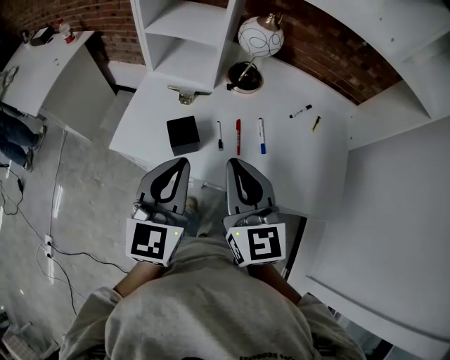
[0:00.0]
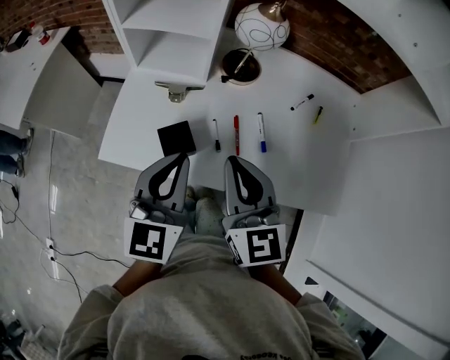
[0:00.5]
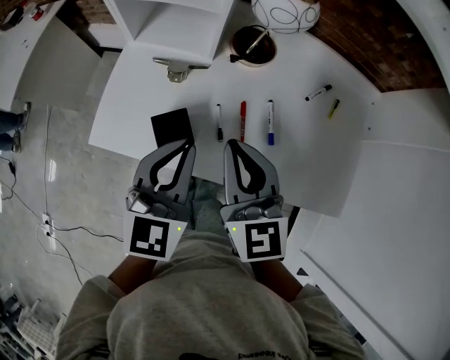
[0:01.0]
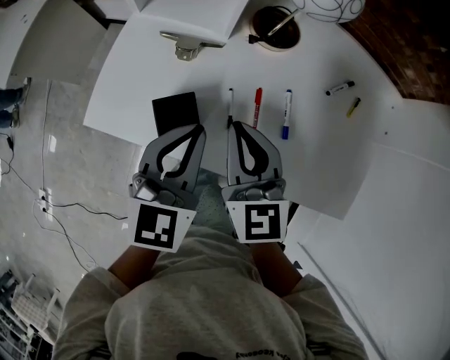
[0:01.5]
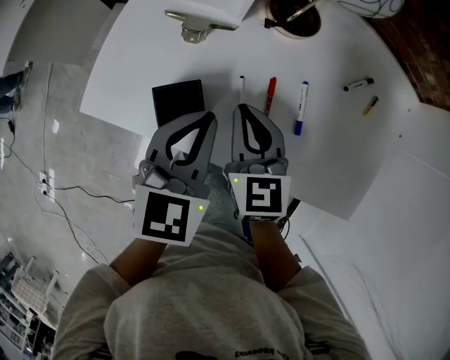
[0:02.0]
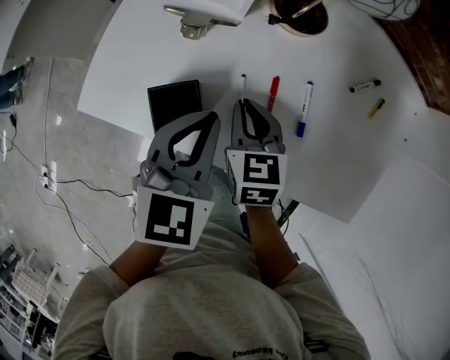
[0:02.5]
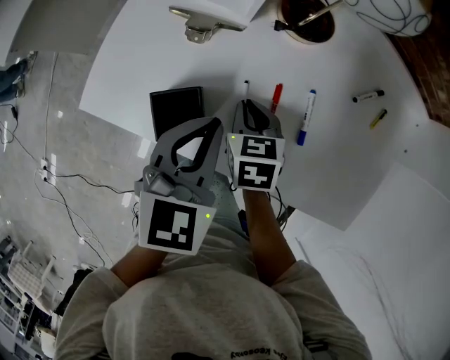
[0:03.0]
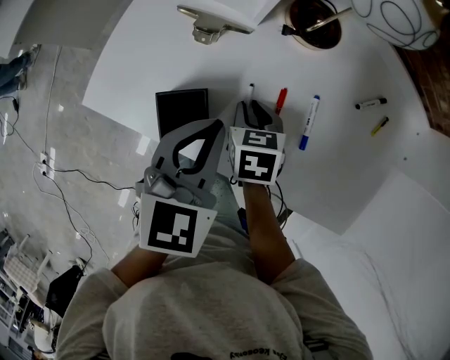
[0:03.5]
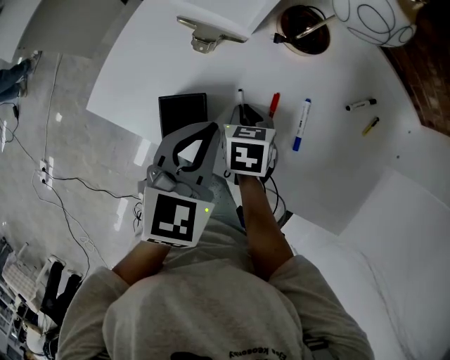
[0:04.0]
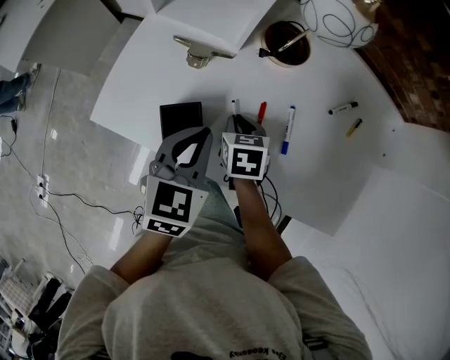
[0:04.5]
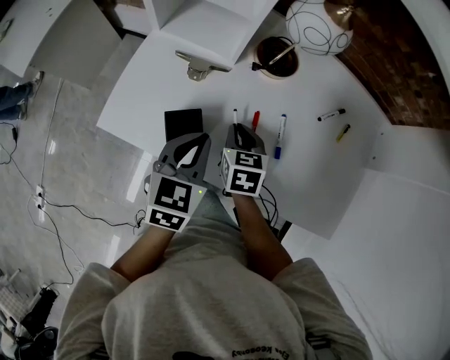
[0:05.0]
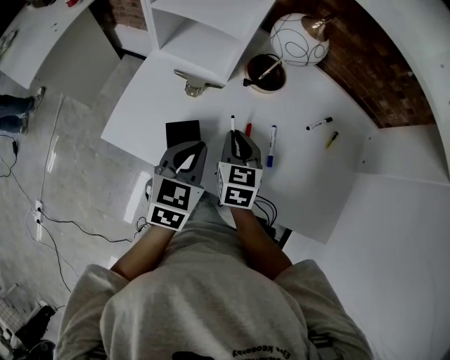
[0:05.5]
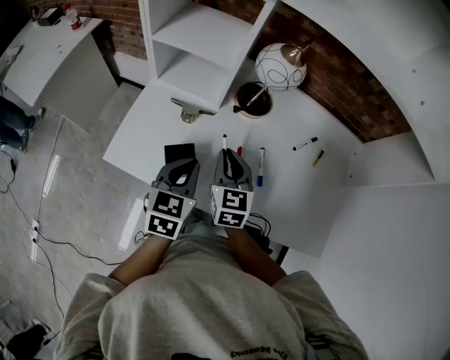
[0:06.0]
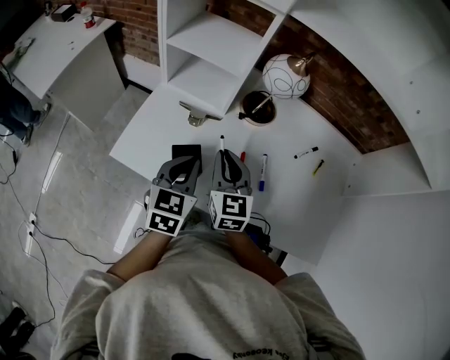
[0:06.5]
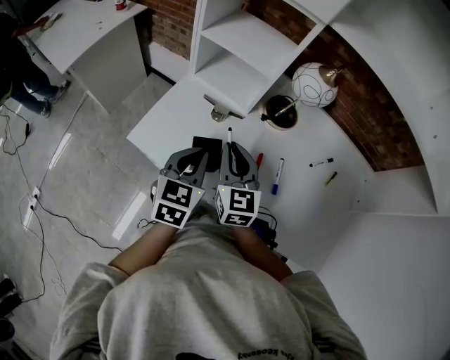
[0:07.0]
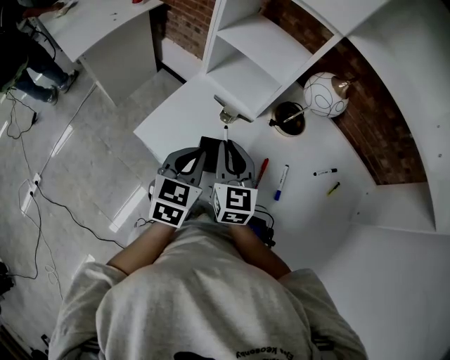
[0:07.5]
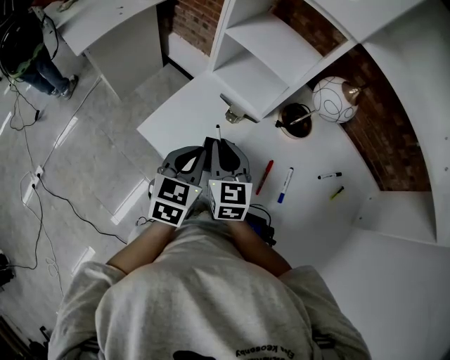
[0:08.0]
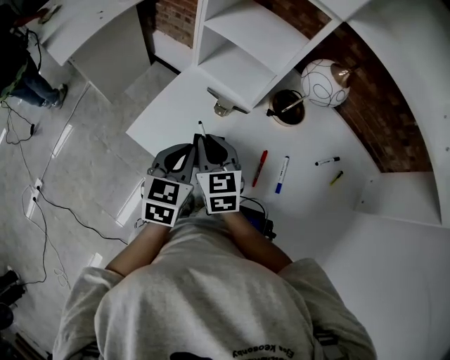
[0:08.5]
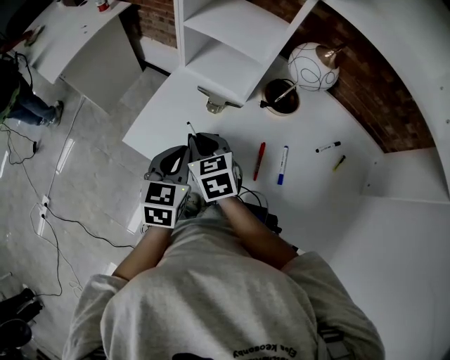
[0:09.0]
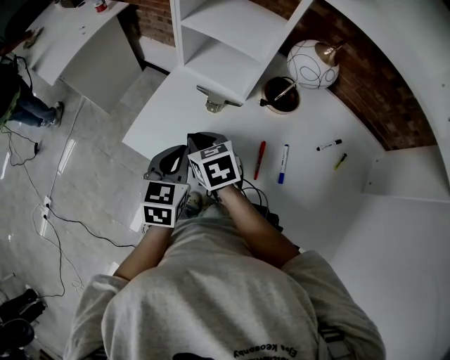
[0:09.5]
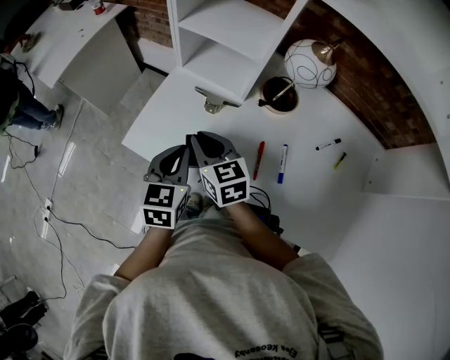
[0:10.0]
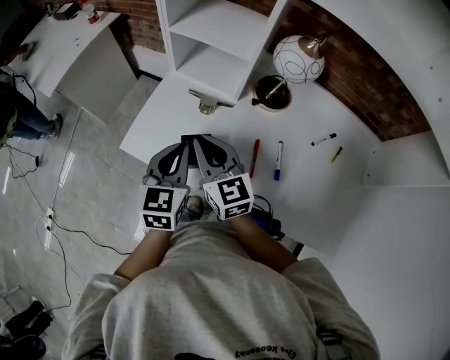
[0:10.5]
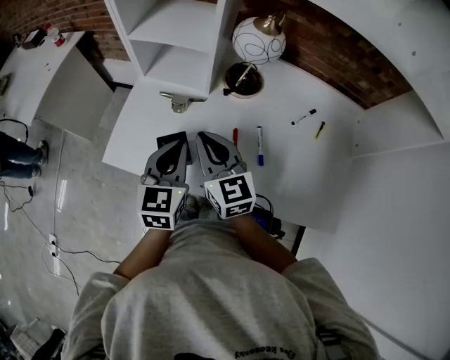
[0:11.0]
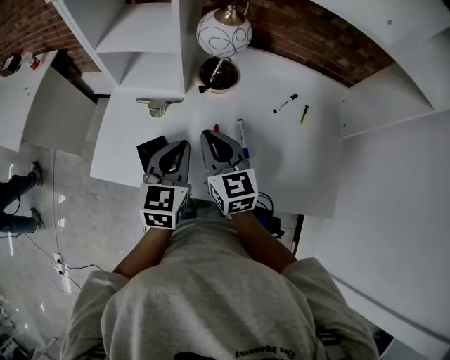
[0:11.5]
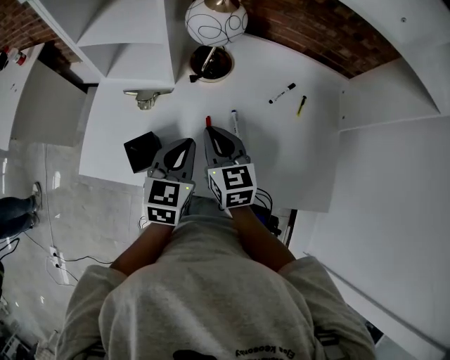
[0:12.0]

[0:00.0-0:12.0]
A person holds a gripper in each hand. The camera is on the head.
0:00.0 to 0:02.0: Both grippers travel together downward and forward, about 25 cm. The right gripper turns by about 20 degrees, while the left gripper rotates approximately 20 degrees.
0:02.0 to 0:04.0: The right gripper travels downward by about 10 cm, and tips its fingers downward by some 30 degrees.
0:04.0 to 0:06.0: The right gripper heads upward, covering some 15 cm, and tips its fingers upward by about 40 degrees.
0:06.0 to 0:08.0: The right gripper travels to the left by some 15 cm, and rotates roughly 20 degrees; the left gripper travels to the left by approximately 10 cm.
0:10.0 to 0:12.0: The right gripper ends up approximately 20 cm from where it was, and rotates roughly 30 degrees; the left gripper ends up approximately 20 cm from where it was, and turns by some 20 degrees.

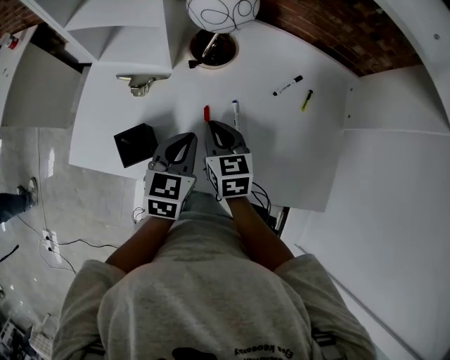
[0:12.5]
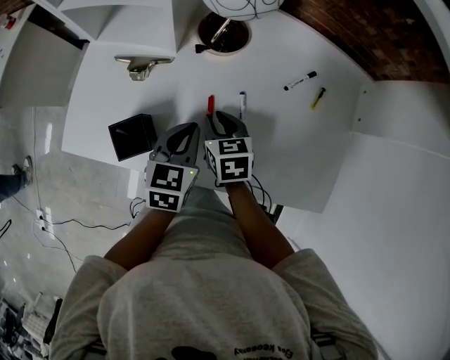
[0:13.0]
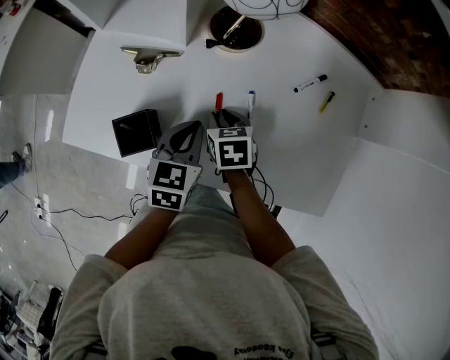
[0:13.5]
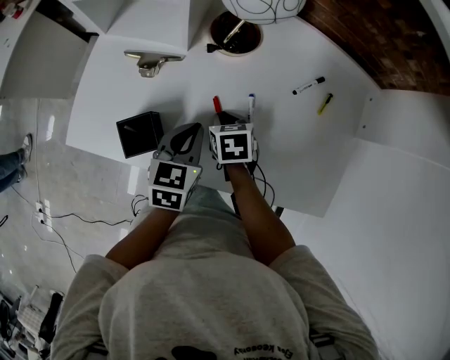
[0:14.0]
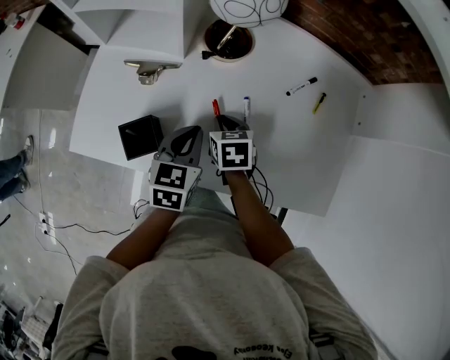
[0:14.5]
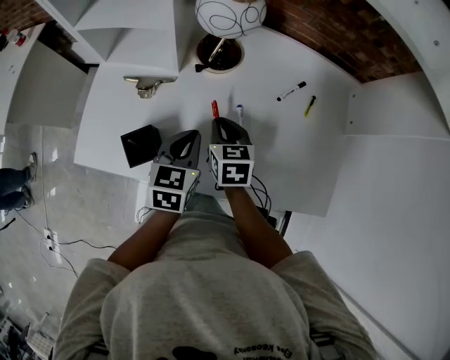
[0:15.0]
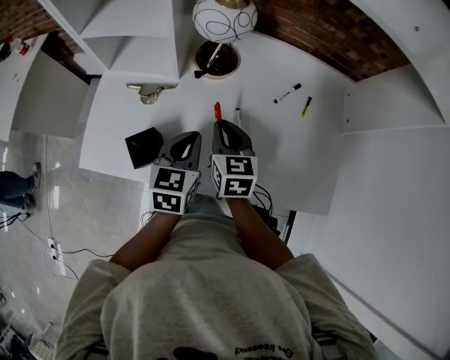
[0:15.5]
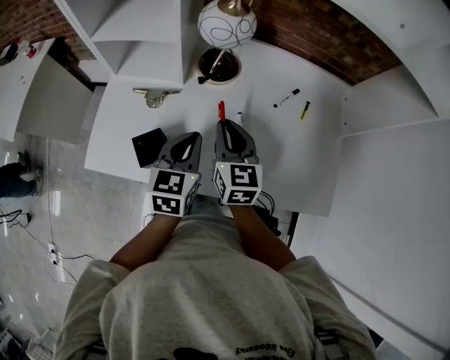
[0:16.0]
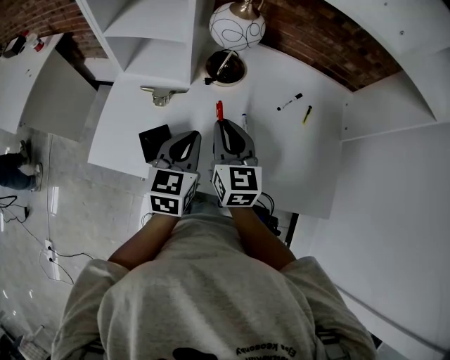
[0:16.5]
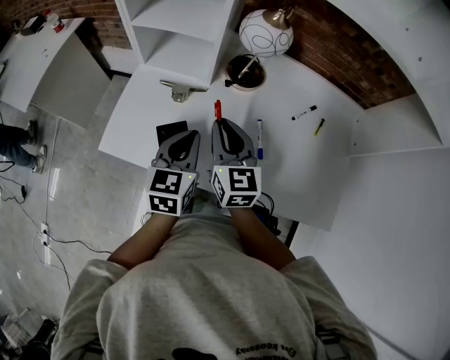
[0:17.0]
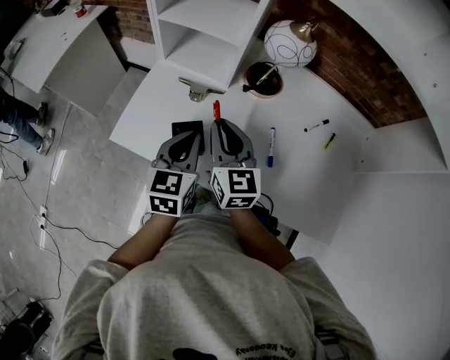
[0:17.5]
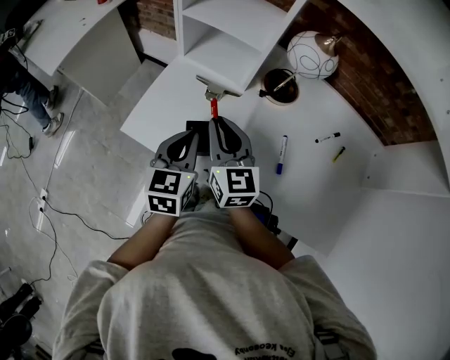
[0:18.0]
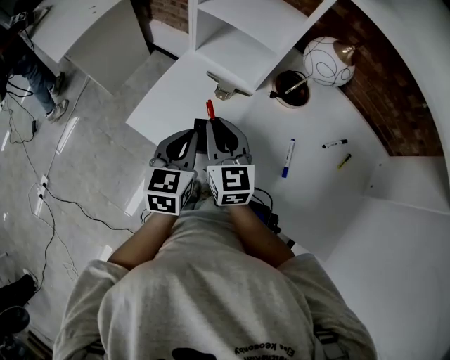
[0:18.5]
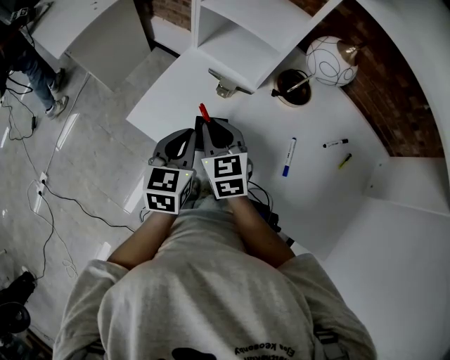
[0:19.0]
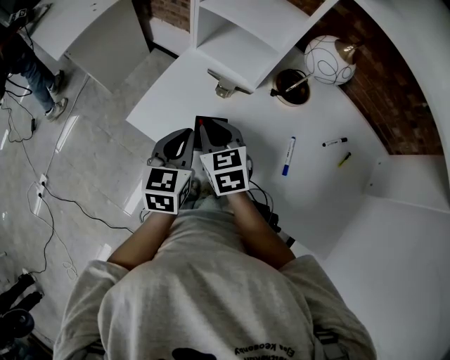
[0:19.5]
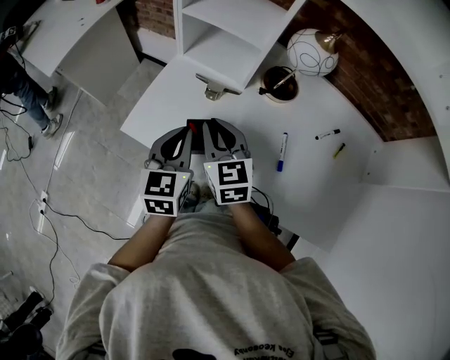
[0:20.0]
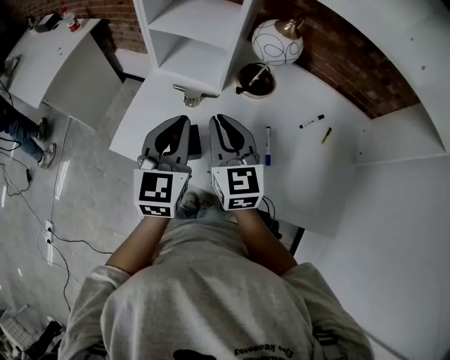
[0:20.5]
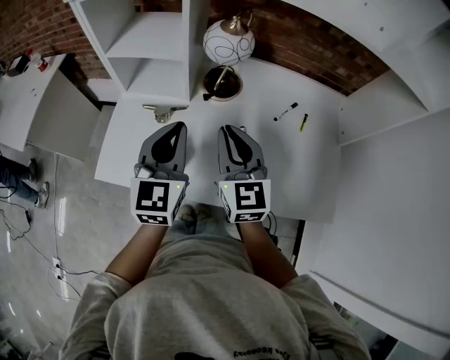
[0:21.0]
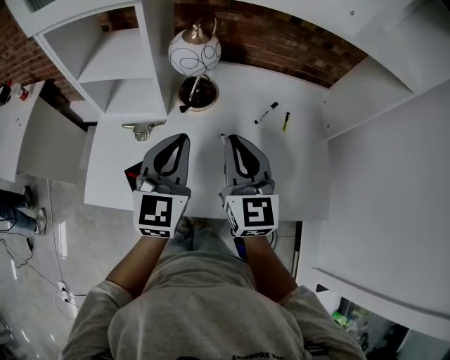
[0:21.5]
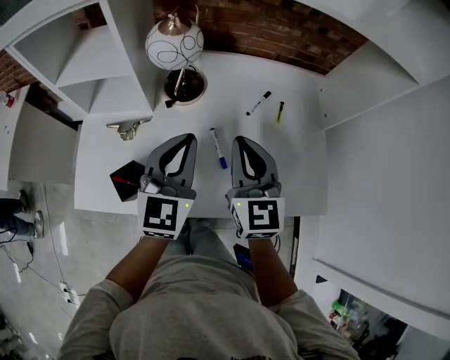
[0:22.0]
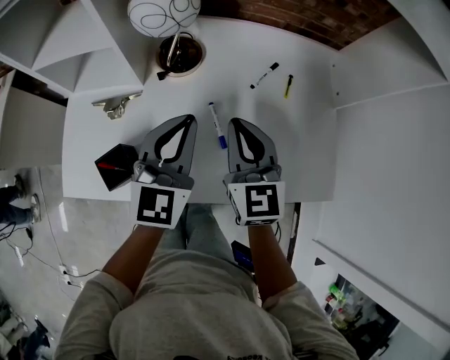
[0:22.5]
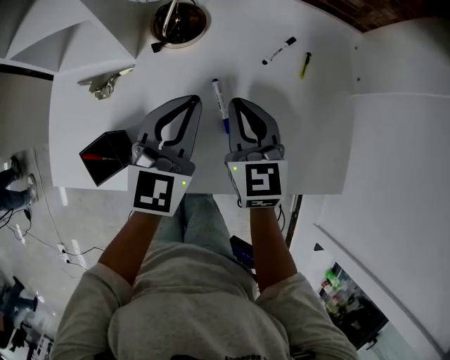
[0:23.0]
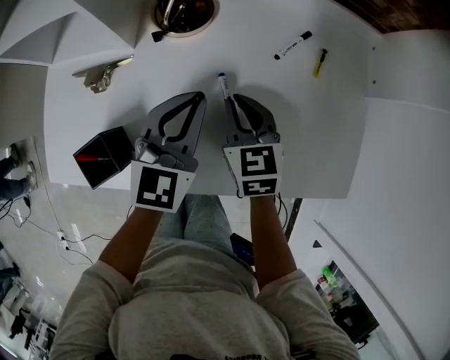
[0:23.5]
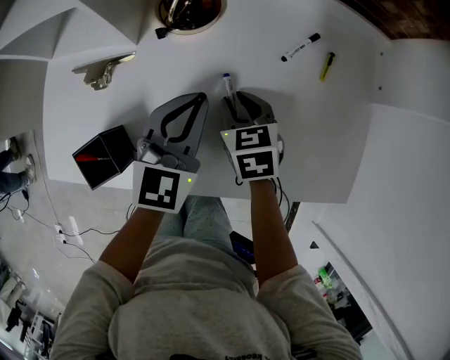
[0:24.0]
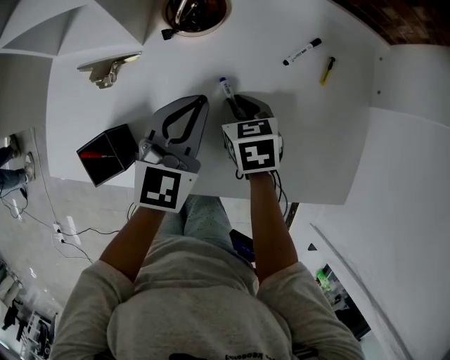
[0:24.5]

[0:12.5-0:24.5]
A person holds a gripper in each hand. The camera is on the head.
0:12.5 to 0:14.5: The right gripper shifts approximately 5 cm downward, and turns by some 20 degrees.
0:14.5 to 0:16.5: The left gripper goes about 10 cm upward. The right gripper moves upward, some 20 cm, and tips its fingers upward by about 40 degrees.
0:16.5 to 0:18.5: Both grippers travel together to the left, roughly 15 cm. The left gripper turns by approximately 20 degrees. The right gripper swivels roughly 30 degrees.
0:18.5 to 0:20.5: The right gripper is displaced to the right and upward by roughly 10 cm; the left gripper is displaced upward and to the right by about 10 cm, and turns by approximately 20 degrees.
0:20.5 to 0:22.5: The two grippers go approximately 20 cm to the right. The right gripper turns by roughly 20 degrees. Meanwhile the left gripper changes its angle by about 30 degrees.
0:22.5 to 0:24.5: The right gripper heads downward, covering about 20 cm, and tips its fingers downward by some 40 degrees; the left gripper heads downward, covering roughly 10 cm.

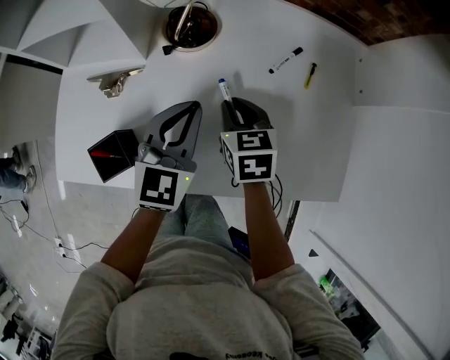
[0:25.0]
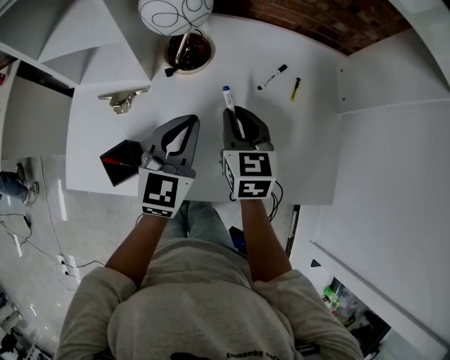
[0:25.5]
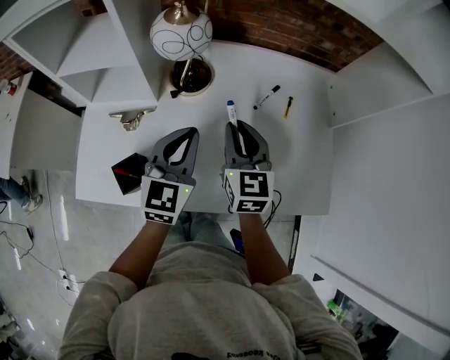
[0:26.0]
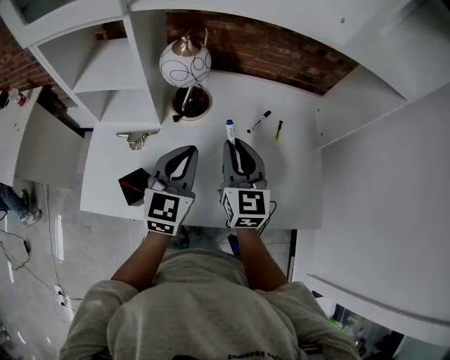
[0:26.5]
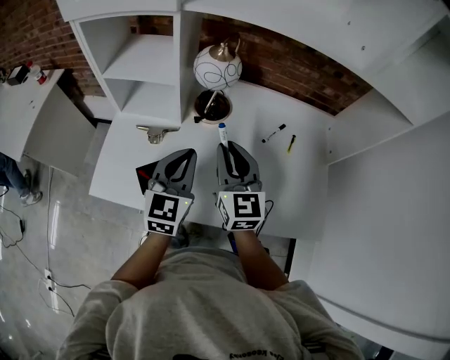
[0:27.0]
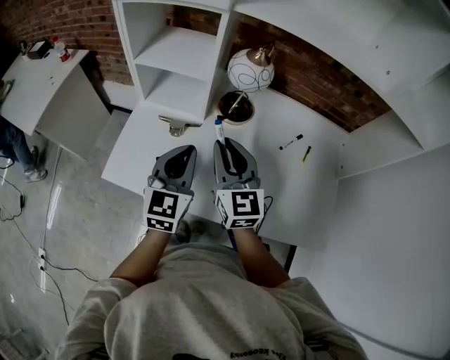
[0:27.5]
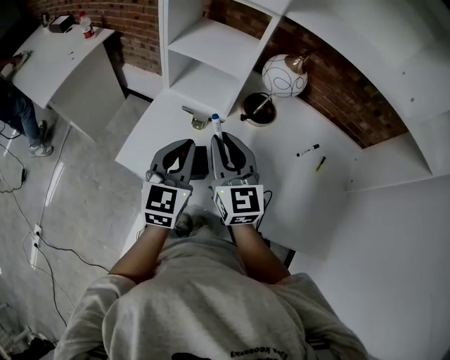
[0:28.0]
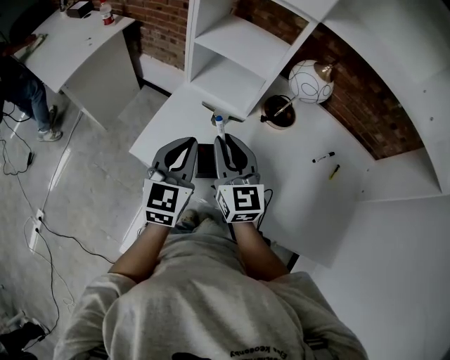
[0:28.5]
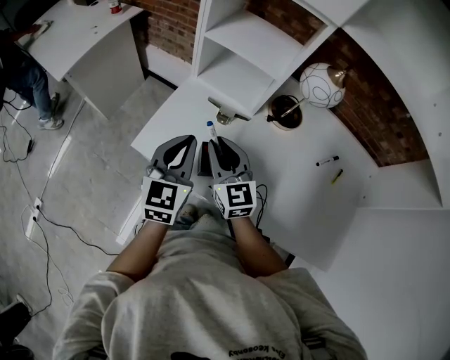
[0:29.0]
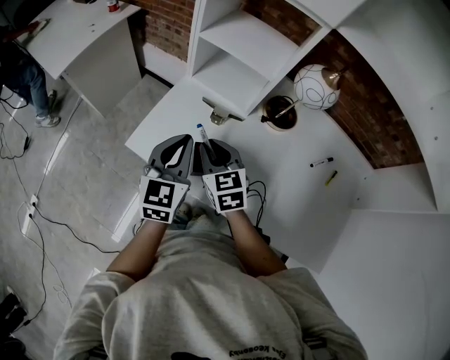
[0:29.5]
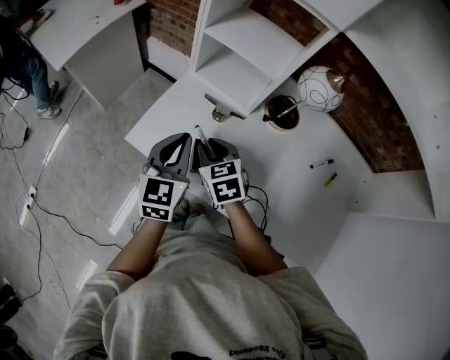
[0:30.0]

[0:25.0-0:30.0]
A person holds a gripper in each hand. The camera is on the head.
0:25.0 to 0:27.5: The right gripper shifts about 25 cm upward and to the left, and tilts its fingers roughly 40 degrees upward. Meanwhile the left gripper moves to the left, upward and backward, some 20 cm.
0:27.5 to 0:30.0: The right gripper shifts some 20 cm to the left and downward, and tilts its fingers some 40 degrees downward, while the left gripper travels to the left by some 15 cm.
